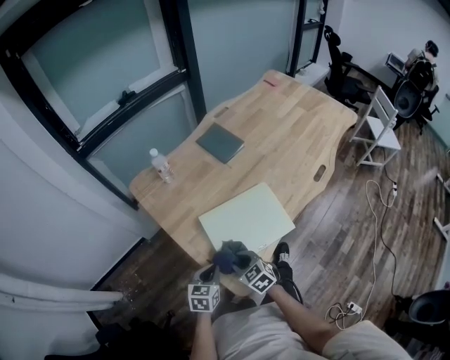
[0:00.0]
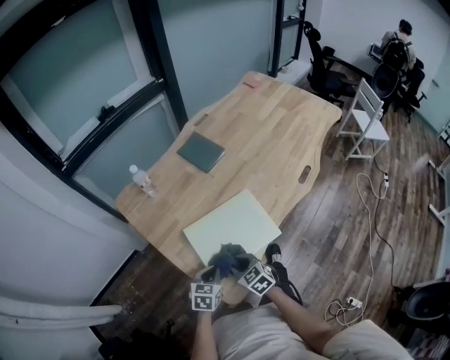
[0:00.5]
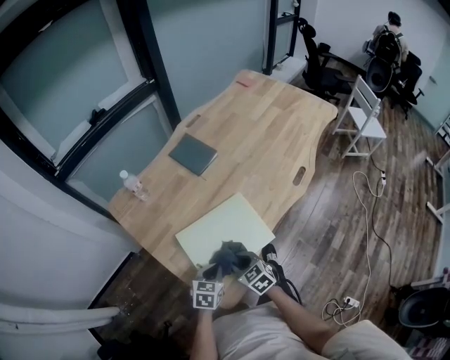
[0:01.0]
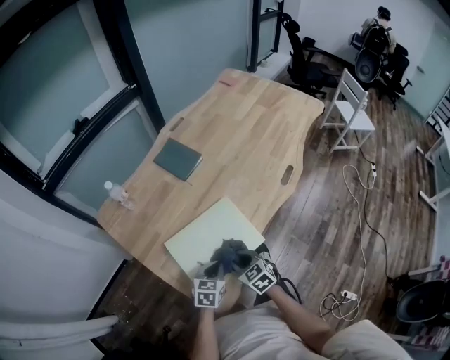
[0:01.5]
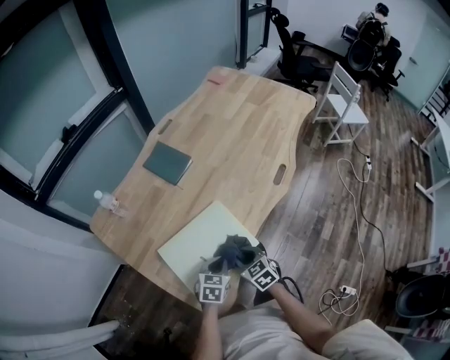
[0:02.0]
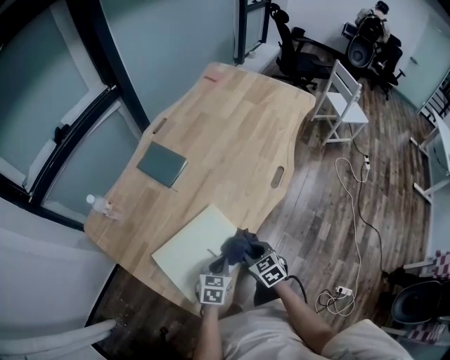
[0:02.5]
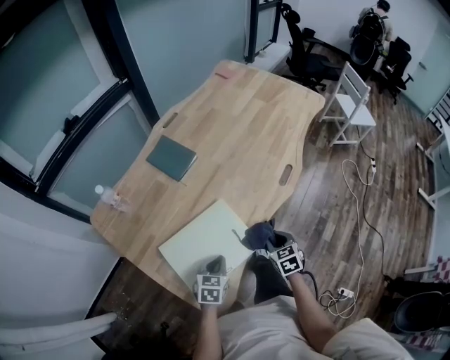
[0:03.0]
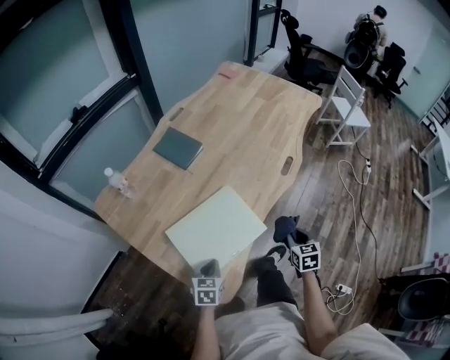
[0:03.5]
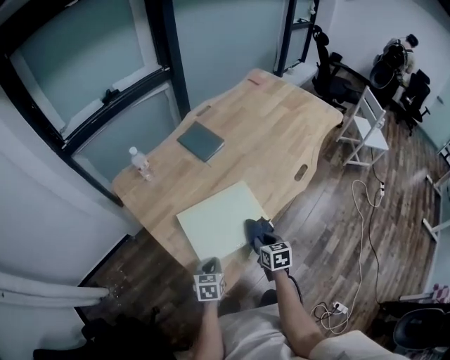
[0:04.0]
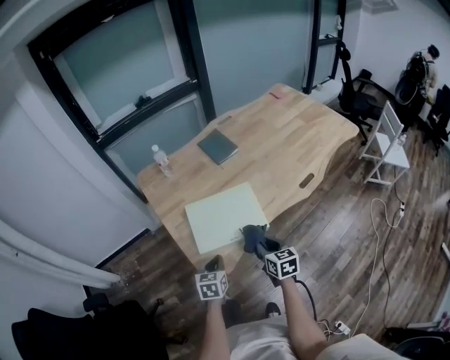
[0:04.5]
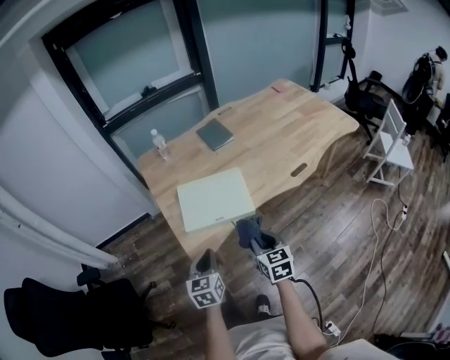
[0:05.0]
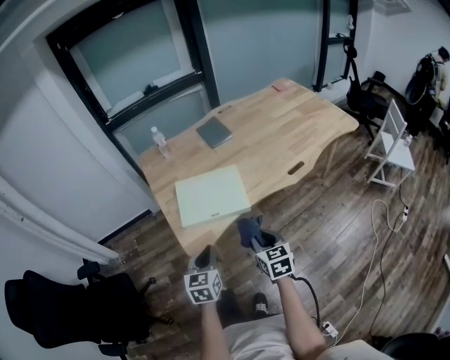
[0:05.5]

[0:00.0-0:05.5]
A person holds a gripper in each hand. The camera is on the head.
0:00.0 to 0:02.0: The two grippers go roughly 20 cm to the right and forward. The left gripper rotates some 20 degrees.
0:02.0 to 0:03.5: The right gripper goes approximately 20 cm to the right, and changes its angle by about 30 degrees. The left gripper goes about 10 cm to the left and backward.
0:03.5 to 0:05.5: The left gripper changes place by roughly 25 cm, and turns by about 40 degrees, while the right gripper moves some 20 cm, and turns by roughly 40 degrees.

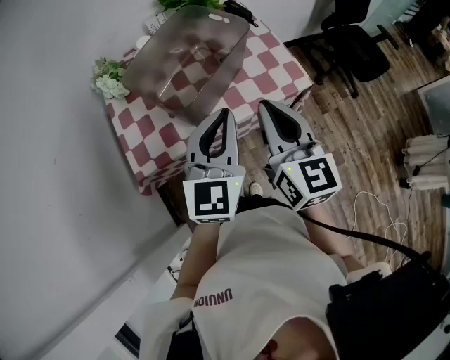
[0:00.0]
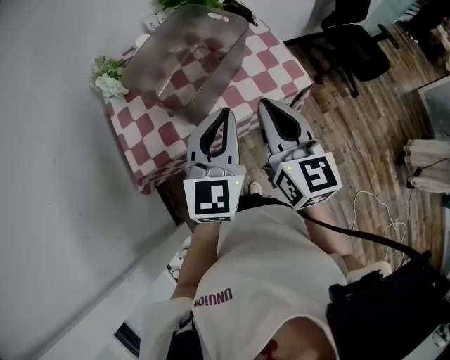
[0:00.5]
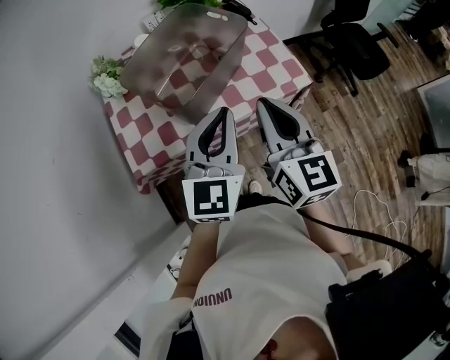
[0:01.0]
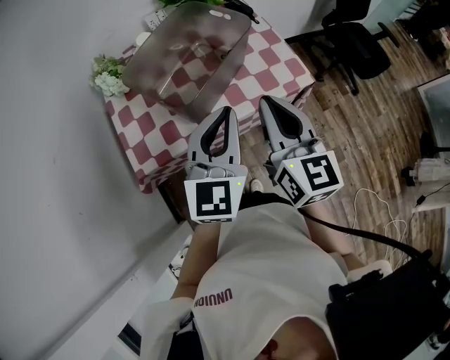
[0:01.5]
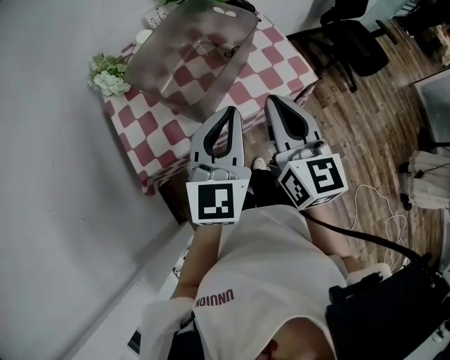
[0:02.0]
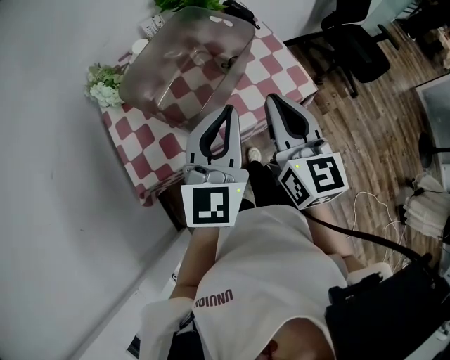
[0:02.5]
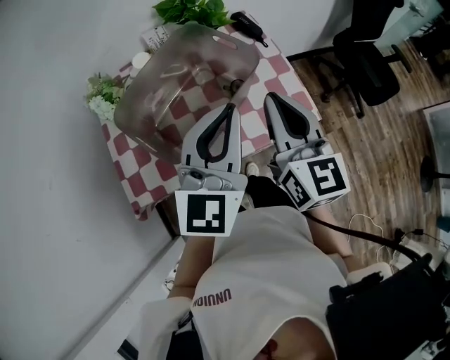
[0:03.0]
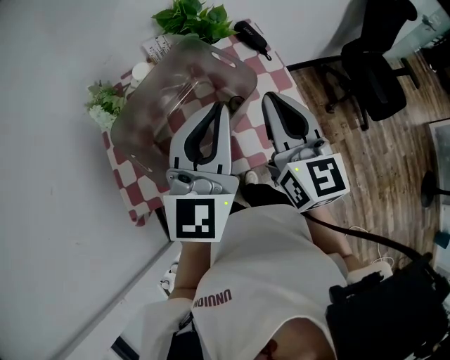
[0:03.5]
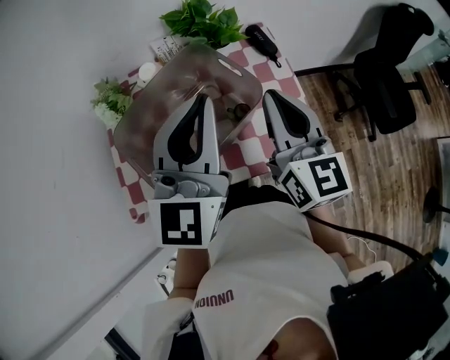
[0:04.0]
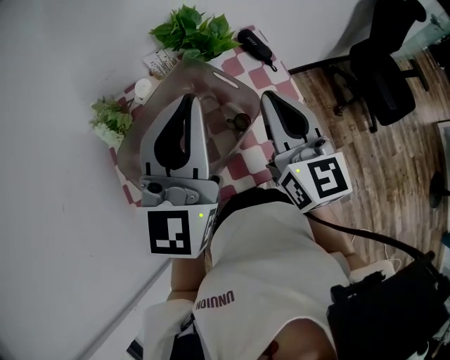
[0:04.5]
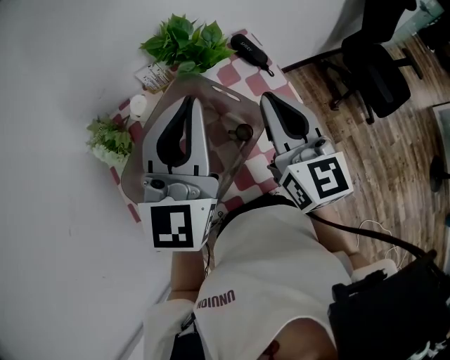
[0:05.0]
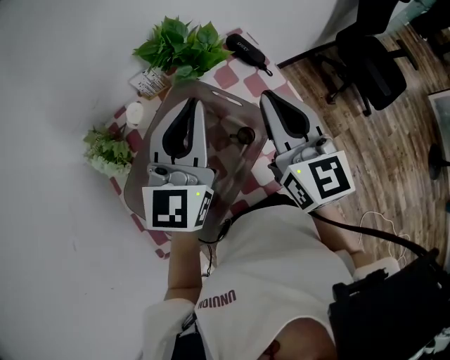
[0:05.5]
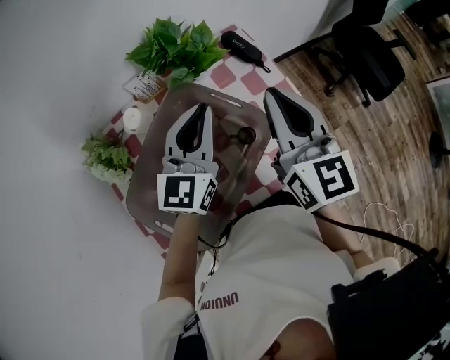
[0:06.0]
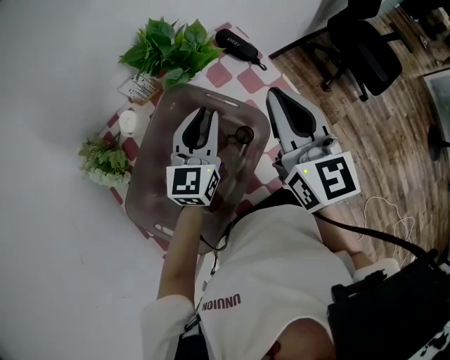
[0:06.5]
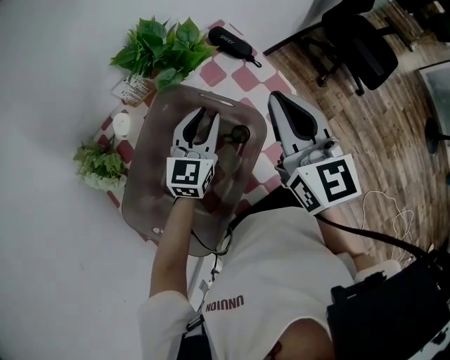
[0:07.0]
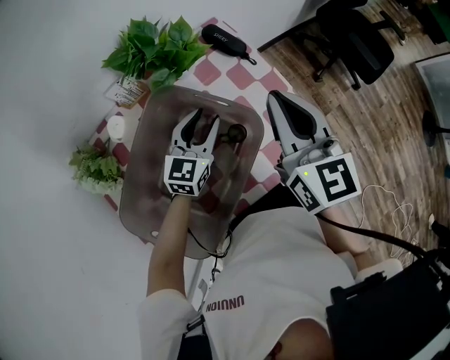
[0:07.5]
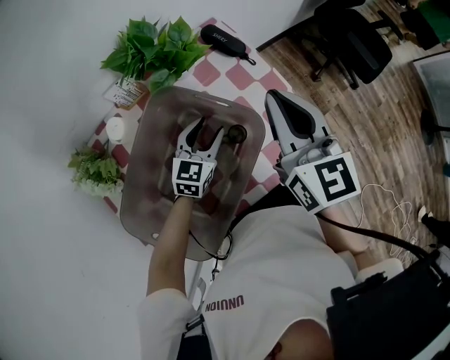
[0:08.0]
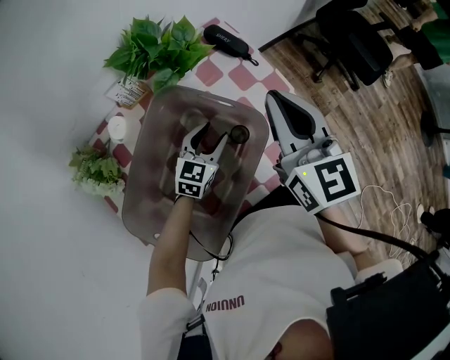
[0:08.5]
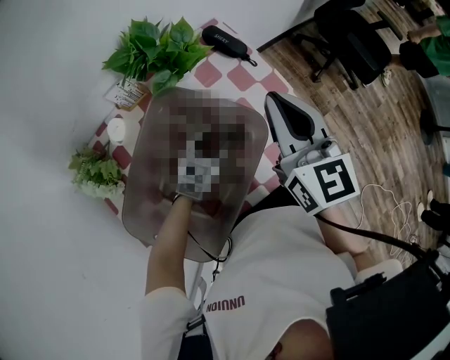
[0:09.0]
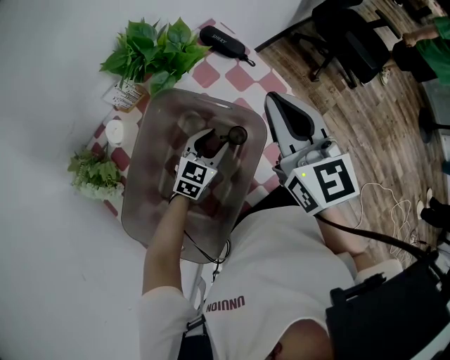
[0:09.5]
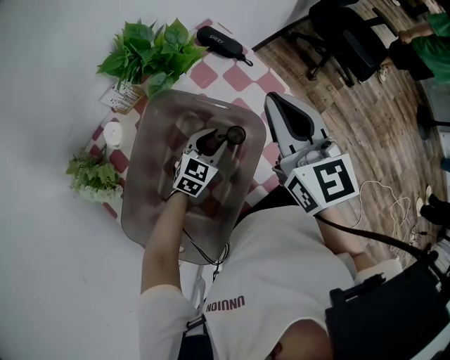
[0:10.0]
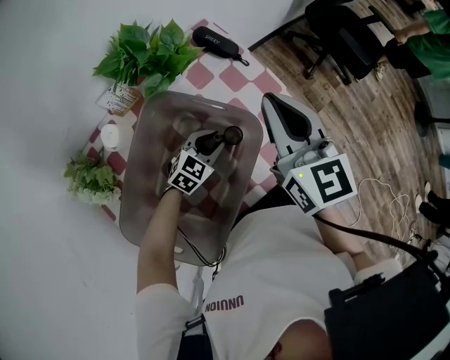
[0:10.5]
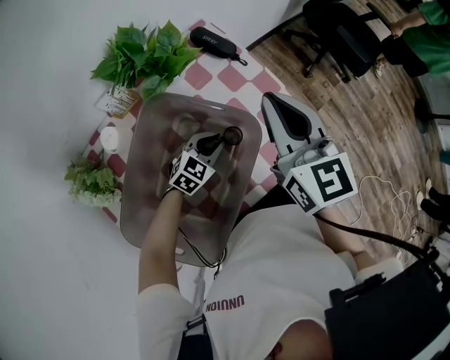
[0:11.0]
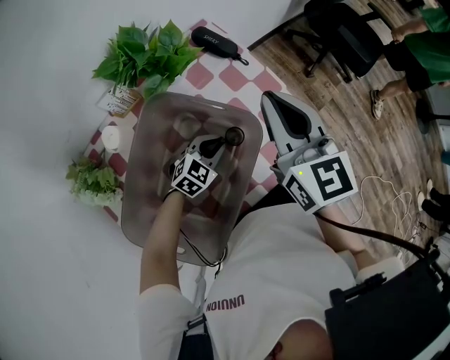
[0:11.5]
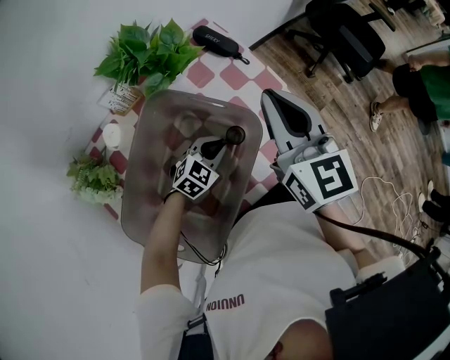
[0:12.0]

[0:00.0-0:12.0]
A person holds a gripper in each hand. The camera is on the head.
0:00.0 to 0:02.0: There are only small adjustments of the grippers.
0:02.0 to 0:04.0: The left gripper is displaced forward and upward by roughly 20 cm. Meanwhile the right gripper goes about 25 cm forward.
0:04.0 to 0:06.0: The left gripper moves forward and downward, approximately 20 cm, and swivels roughly 20 degrees. Meanwhile the right gripper travels forward by approximately 10 cm.
0:06.0 to 0:08.0: The left gripper is displaced downward by about 20 cm, turns by approximately 30 degrees, and opens its fingers.
0:08.0 to 0:10.0: The left gripper travels downward by approximately 5 cm, and swivels some 20 degrees.
0:10.0 to 0:12.0: The left gripper closes its fingers.

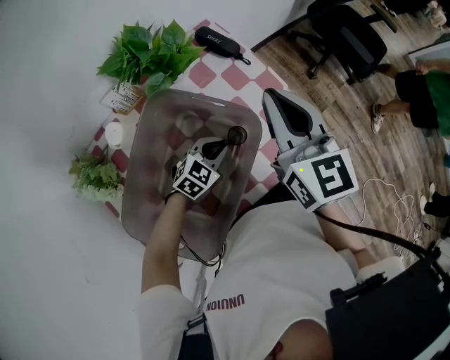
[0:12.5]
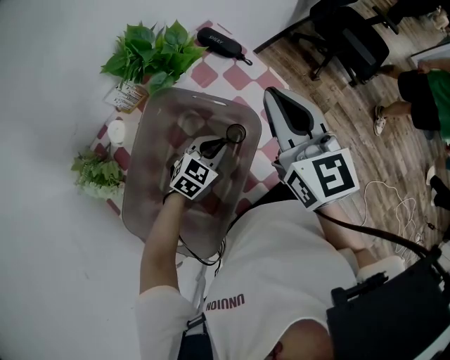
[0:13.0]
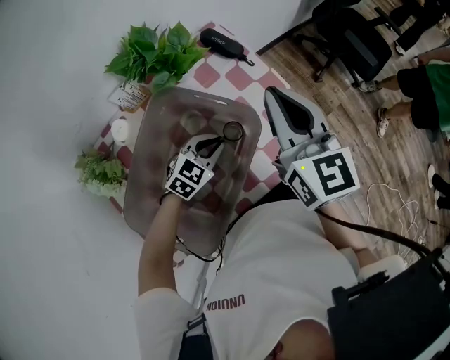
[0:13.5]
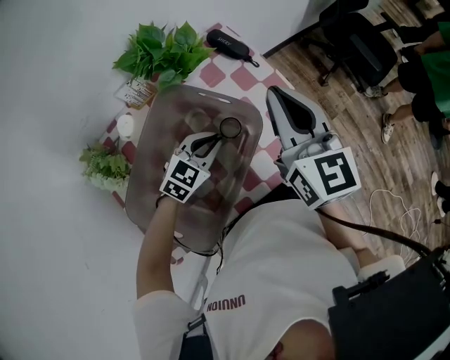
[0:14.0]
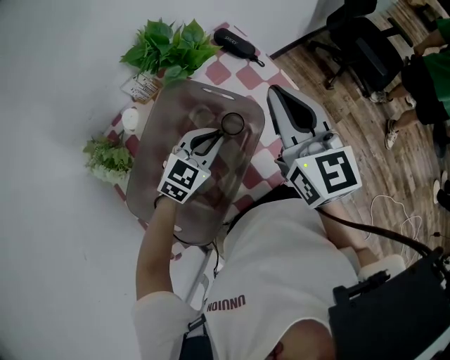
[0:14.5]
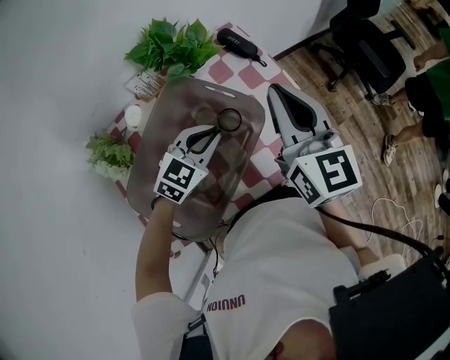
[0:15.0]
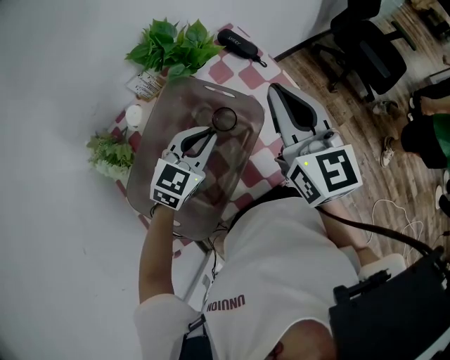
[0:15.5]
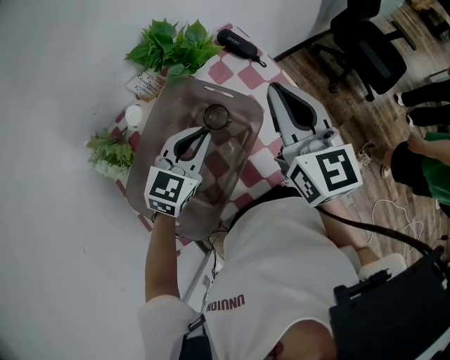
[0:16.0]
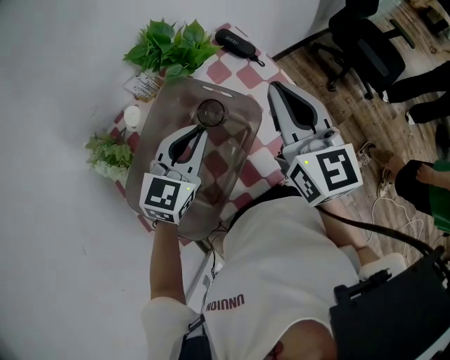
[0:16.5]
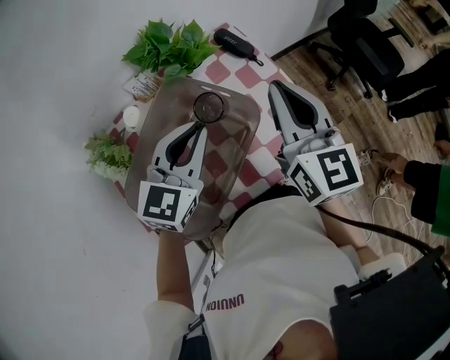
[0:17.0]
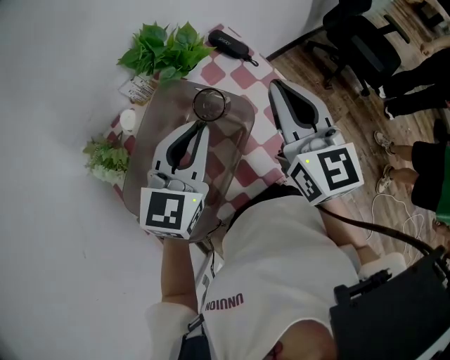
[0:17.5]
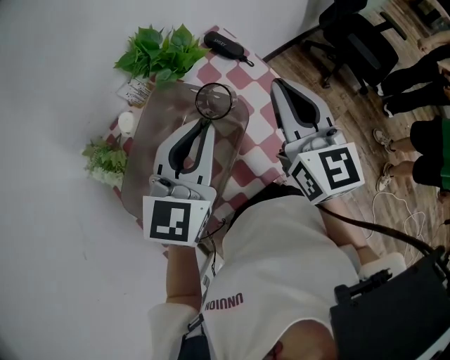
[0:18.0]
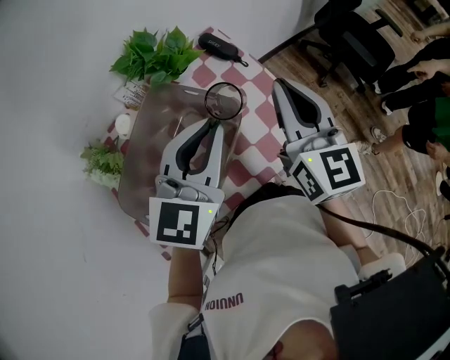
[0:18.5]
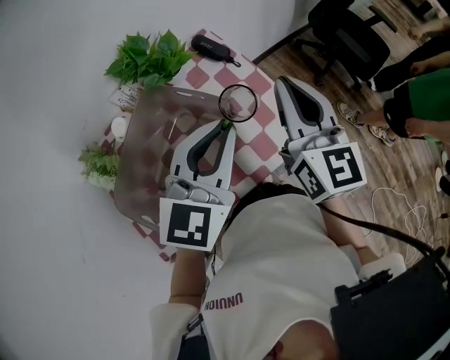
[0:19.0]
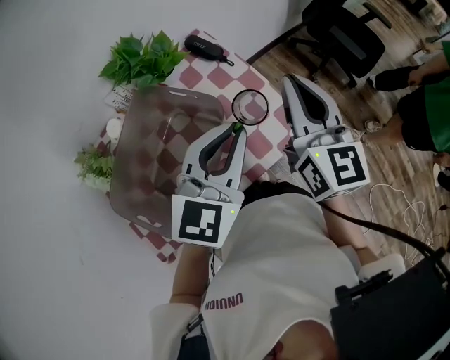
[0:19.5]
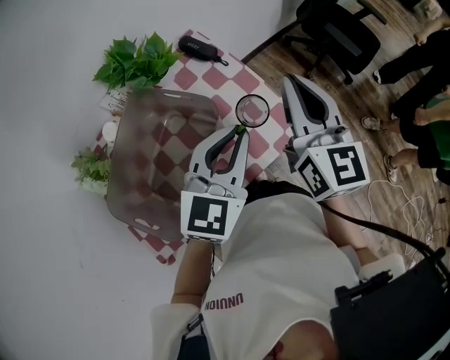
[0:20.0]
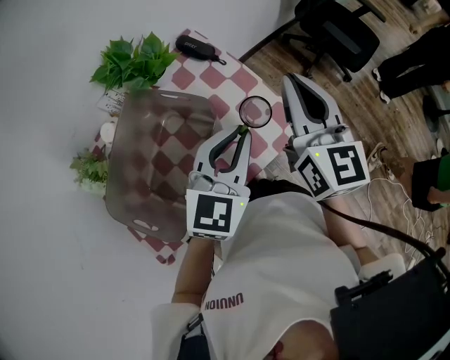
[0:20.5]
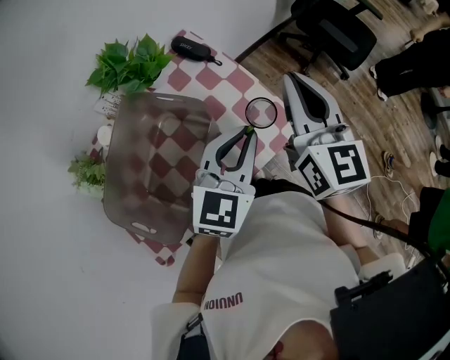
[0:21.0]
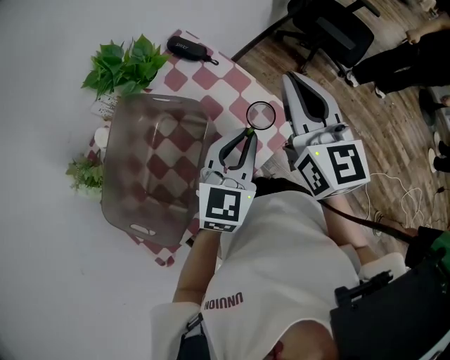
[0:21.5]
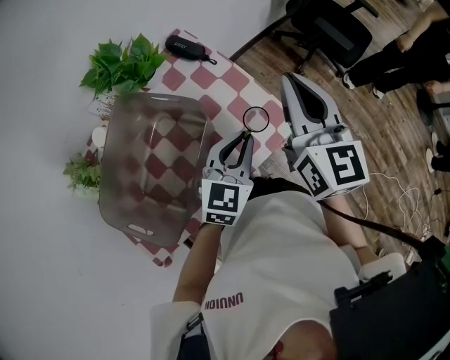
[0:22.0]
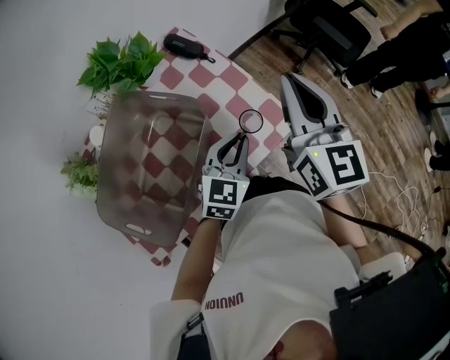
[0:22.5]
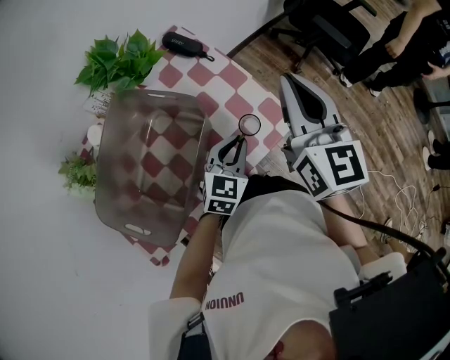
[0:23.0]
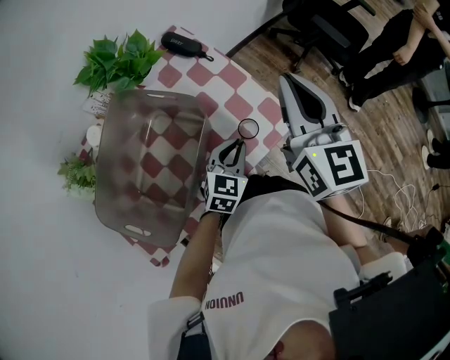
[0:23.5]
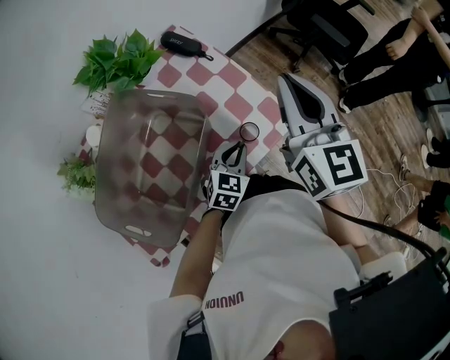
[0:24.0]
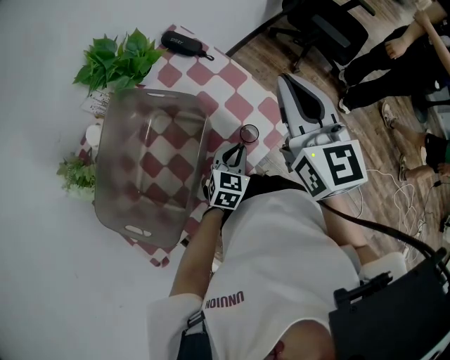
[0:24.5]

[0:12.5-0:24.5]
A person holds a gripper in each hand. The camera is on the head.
0:12.5 to 0:14.5: The left gripper travels upward by roughly 10 cm.
0:14.5 to 0:16.5: The left gripper is displaced upward by roughly 10 cm, and changes its angle by roughly 20 degrees.
0:16.5 to 0:18.5: The left gripper goes roughly 15 cm upward and to the right, while the right gripper heads to the right, covering approximately 5 cm.
0:18.5 to 0:20.5: The left gripper heads to the right and downward, covering roughly 10 cm. The right gripper goes roughly 5 cm to the right.
0:20.5 to 0:22.5: The left gripper travels downward by approximately 15 cm.
0:22.5 to 0:24.5: The left gripper heads downward, covering about 10 cm.
